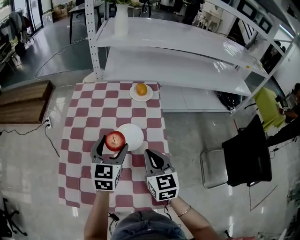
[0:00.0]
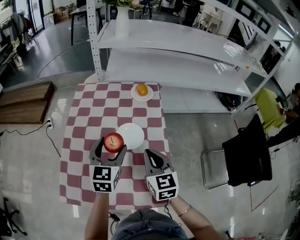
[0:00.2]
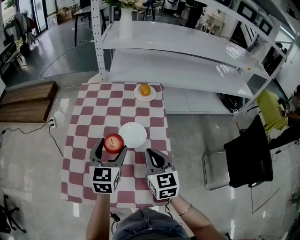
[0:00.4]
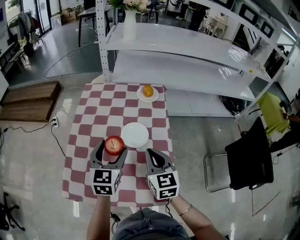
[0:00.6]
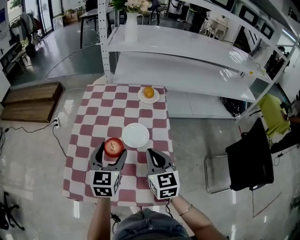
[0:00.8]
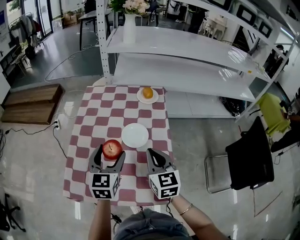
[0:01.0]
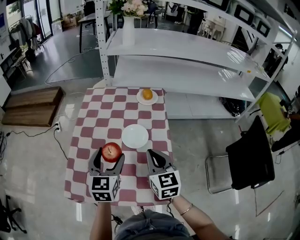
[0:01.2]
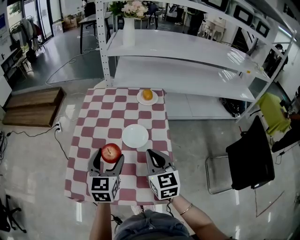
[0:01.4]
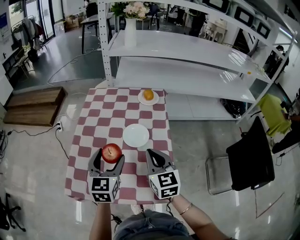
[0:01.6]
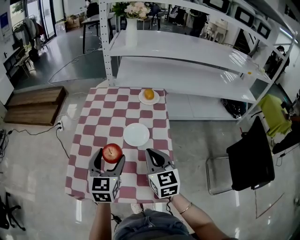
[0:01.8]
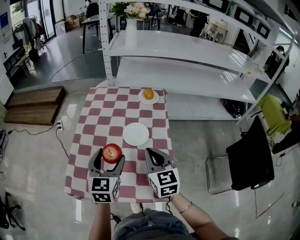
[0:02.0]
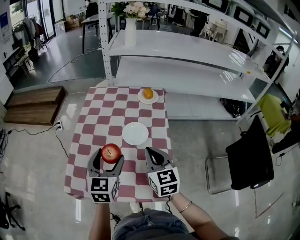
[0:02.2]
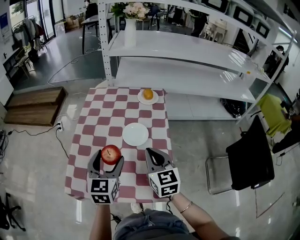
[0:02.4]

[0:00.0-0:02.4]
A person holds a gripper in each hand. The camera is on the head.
0:00.0 to 0:01.2: The left gripper heads backward, covering about 10 cm.
0:01.2 to 0:02.4: The grippers move only a little.

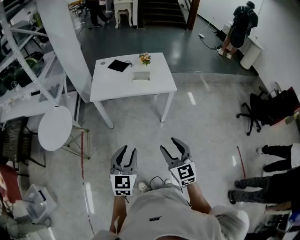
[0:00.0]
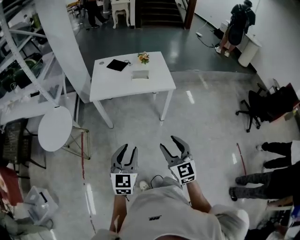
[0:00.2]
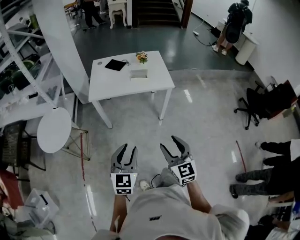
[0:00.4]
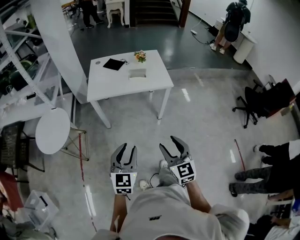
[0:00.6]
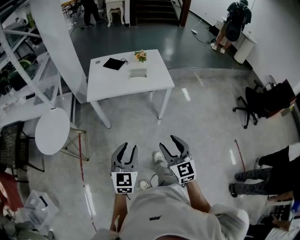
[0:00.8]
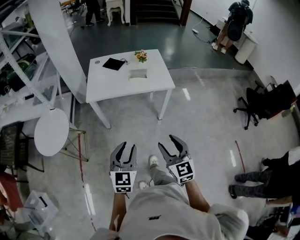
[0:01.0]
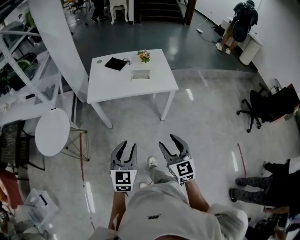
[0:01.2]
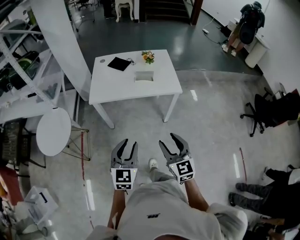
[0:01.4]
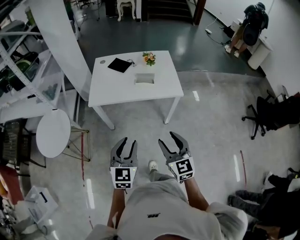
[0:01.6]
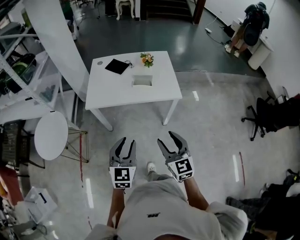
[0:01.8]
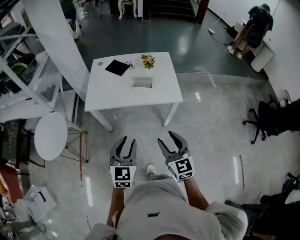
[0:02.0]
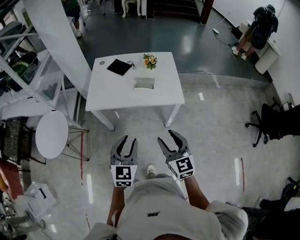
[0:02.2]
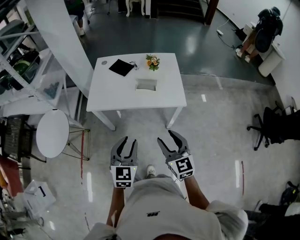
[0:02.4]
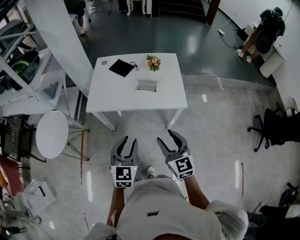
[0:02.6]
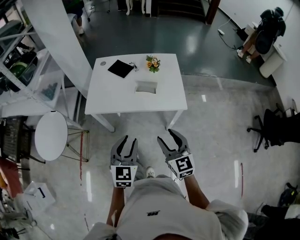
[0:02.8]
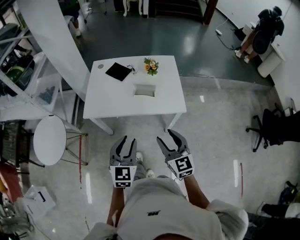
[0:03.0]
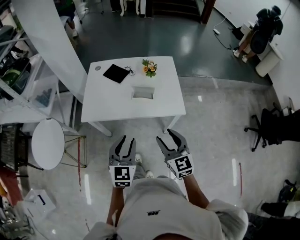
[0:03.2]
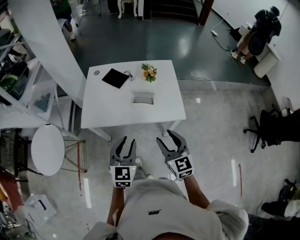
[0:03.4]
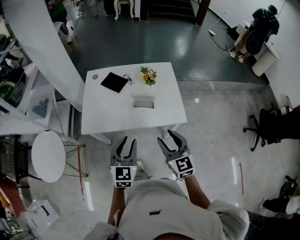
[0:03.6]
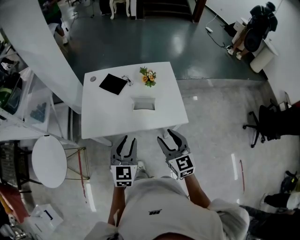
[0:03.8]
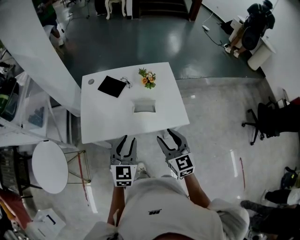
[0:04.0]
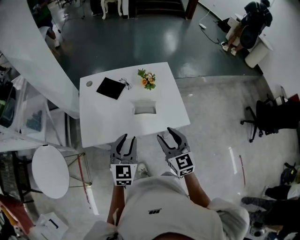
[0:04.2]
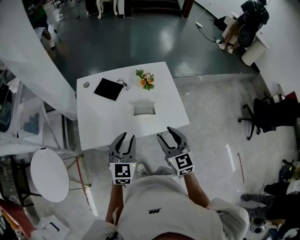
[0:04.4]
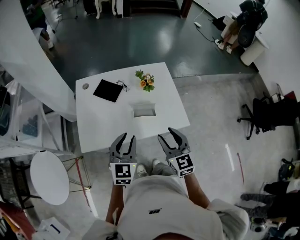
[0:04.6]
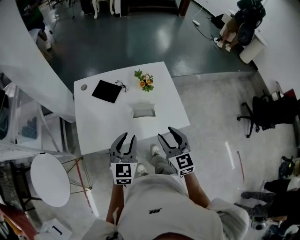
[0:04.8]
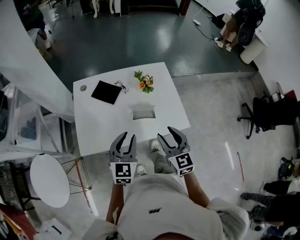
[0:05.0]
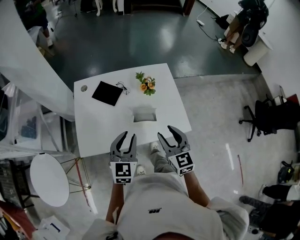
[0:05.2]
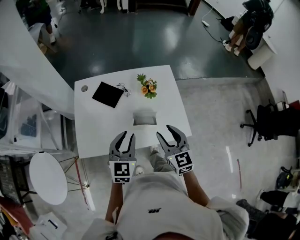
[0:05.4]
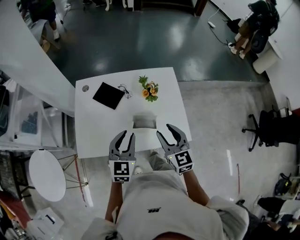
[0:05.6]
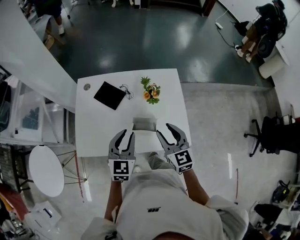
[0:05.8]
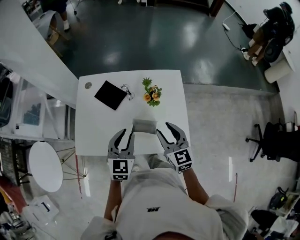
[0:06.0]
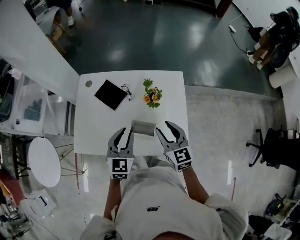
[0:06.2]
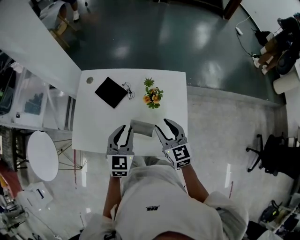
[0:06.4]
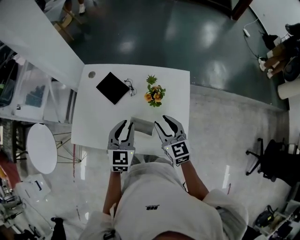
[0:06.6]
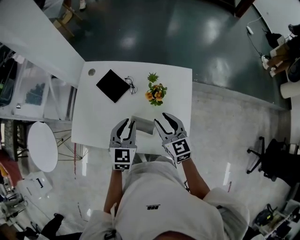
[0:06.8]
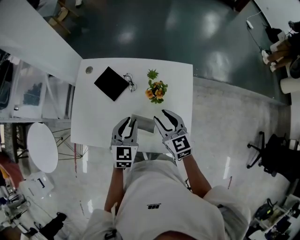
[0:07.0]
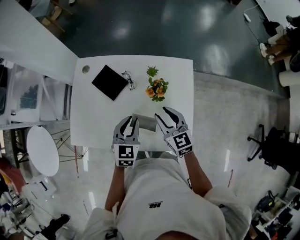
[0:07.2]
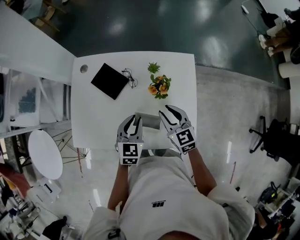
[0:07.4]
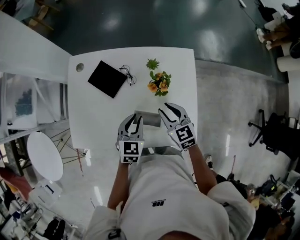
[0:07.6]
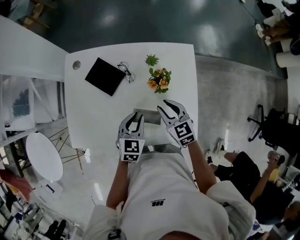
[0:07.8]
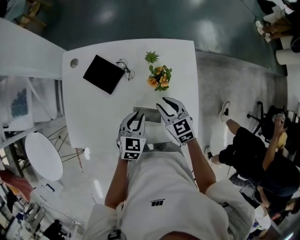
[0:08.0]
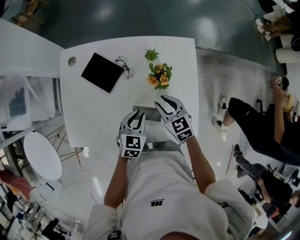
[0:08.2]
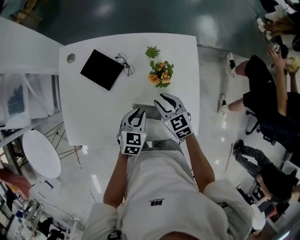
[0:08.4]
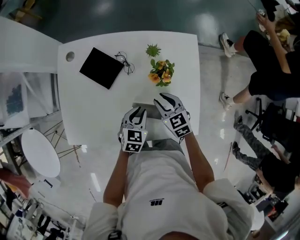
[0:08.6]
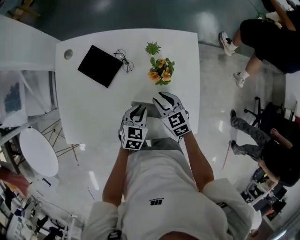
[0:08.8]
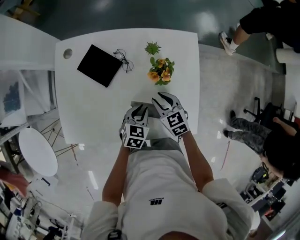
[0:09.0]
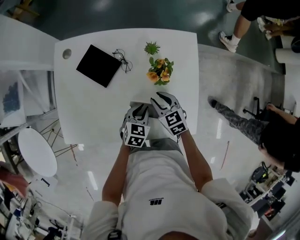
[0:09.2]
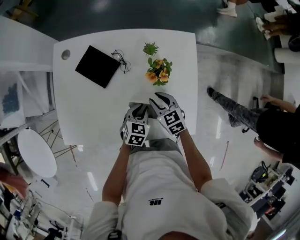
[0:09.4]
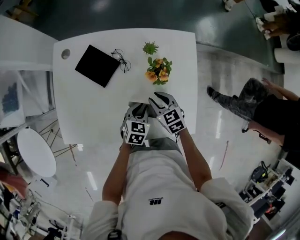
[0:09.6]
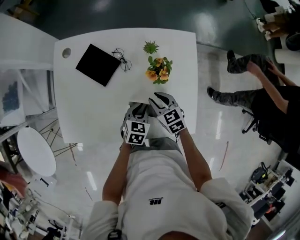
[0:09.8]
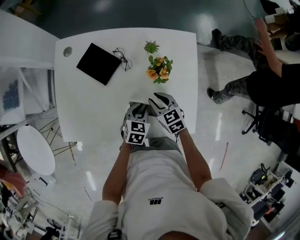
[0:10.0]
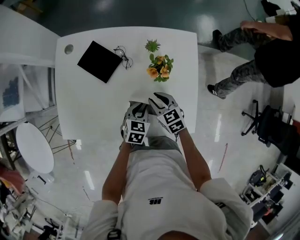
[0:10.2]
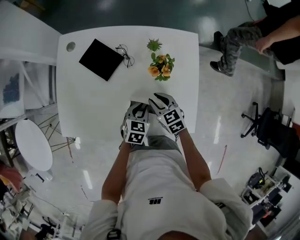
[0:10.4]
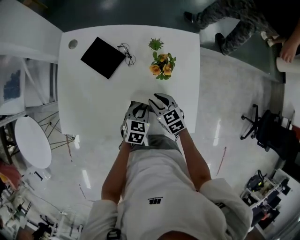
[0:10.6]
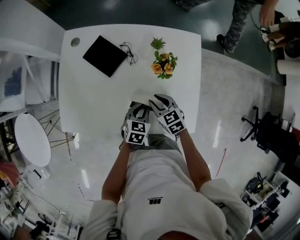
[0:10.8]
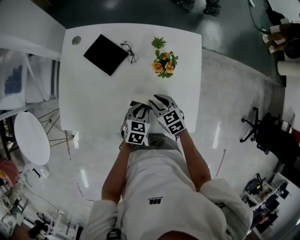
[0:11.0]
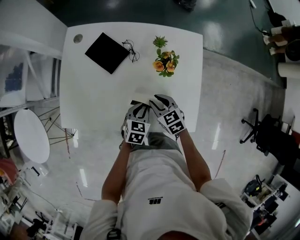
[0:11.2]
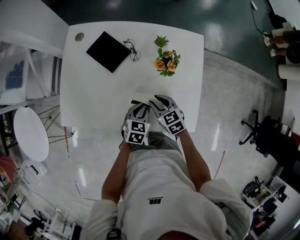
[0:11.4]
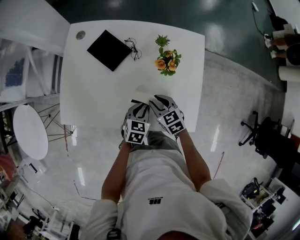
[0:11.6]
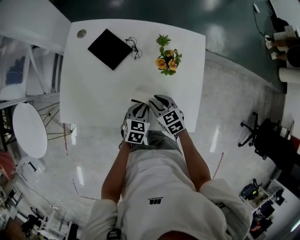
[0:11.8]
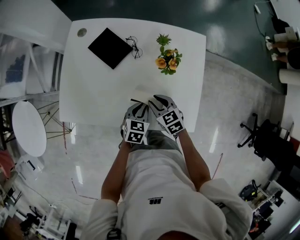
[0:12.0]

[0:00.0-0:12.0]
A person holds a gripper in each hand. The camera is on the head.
0:00.0 to 0:01.6: Both grippers move forward, about 15 cm.
0:01.6 to 0:03.0: Both grippers move forward, about 15 cm.
0:03.0 to 0:04.4: The grippers both shift forward by approximately 20 cm.
0:04.4 to 0:06.0: The grippers both shift forward by about 20 cm.
0:06.0 to 0:07.6: Both grippers travel together downward and forward, about 15 cm.
0:07.6 to 0:09.0: The two grippers go some 10 cm downward.
0:09.0 to 0:10.4: The grippers make only small movements.
0:10.4 to 0:12.0: The right gripper shifts about 5 cm backward.

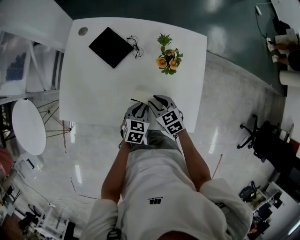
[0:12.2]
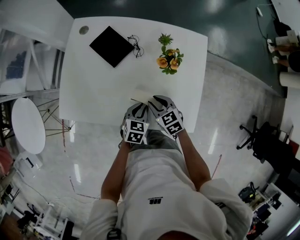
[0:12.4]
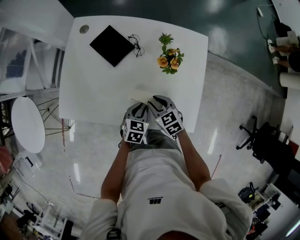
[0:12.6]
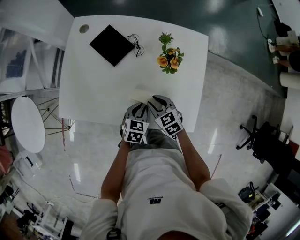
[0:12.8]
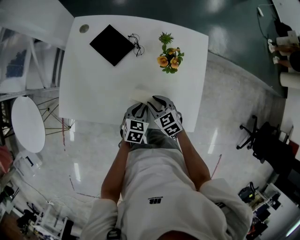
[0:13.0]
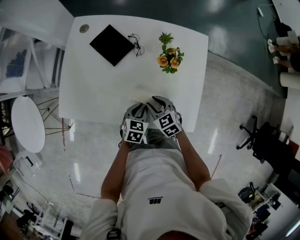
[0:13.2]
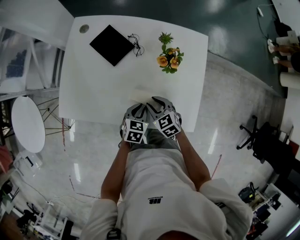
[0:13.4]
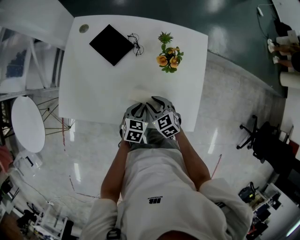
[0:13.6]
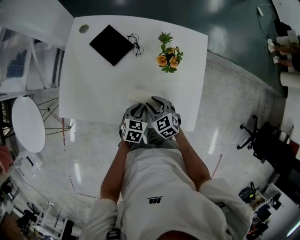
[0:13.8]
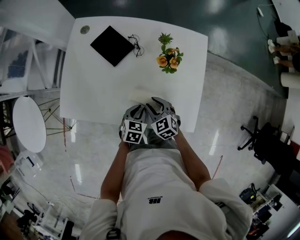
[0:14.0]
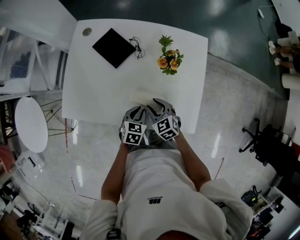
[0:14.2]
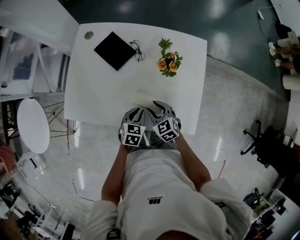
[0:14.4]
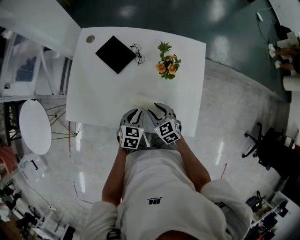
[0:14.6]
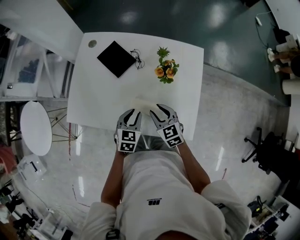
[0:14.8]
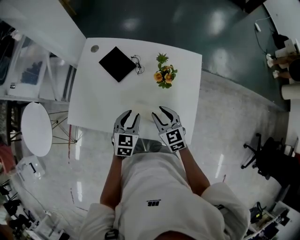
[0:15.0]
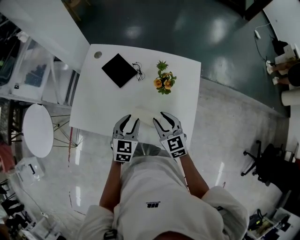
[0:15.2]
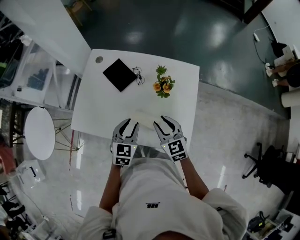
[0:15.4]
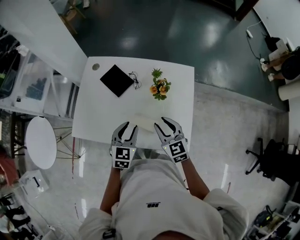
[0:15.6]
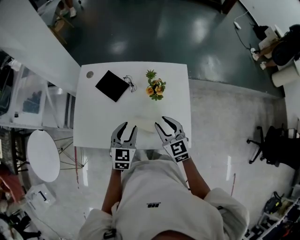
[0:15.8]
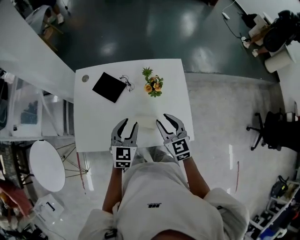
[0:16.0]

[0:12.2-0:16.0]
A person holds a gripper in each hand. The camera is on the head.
0:12.2 to 0:13.4: There are only small adjustments of the grippers.
0:13.4 to 0:14.8: Both grippers travel together upward, roughly 10 cm.
0:14.8 to 0:16.0: The grippers both shift upward by approximately 15 cm. The right gripper rotates about 20 degrees. Meanwhile the left gripper turns by some 20 degrees.

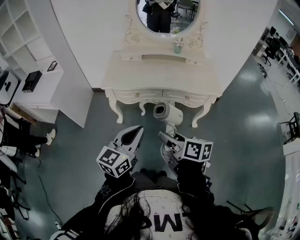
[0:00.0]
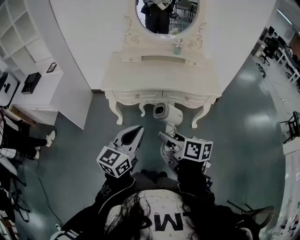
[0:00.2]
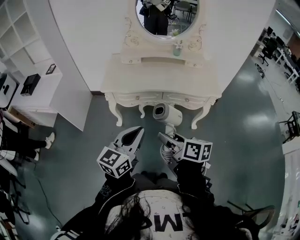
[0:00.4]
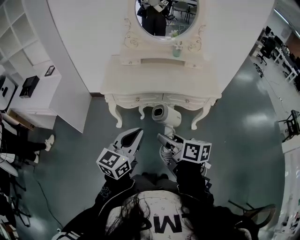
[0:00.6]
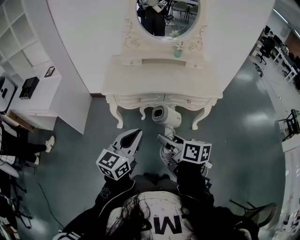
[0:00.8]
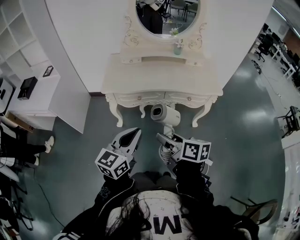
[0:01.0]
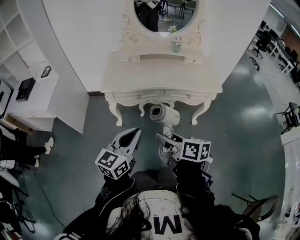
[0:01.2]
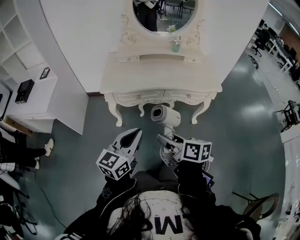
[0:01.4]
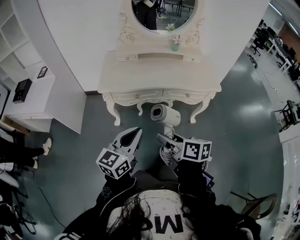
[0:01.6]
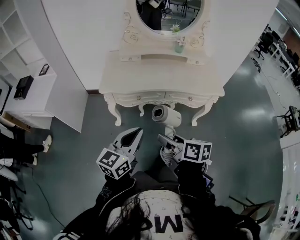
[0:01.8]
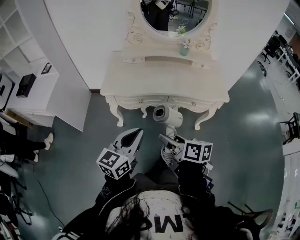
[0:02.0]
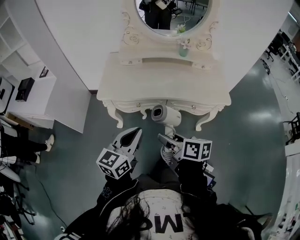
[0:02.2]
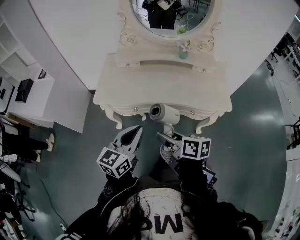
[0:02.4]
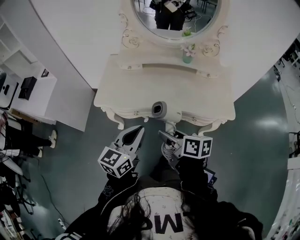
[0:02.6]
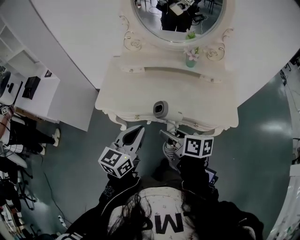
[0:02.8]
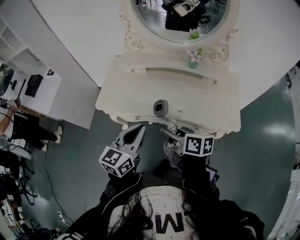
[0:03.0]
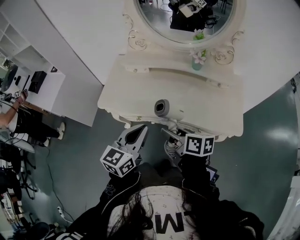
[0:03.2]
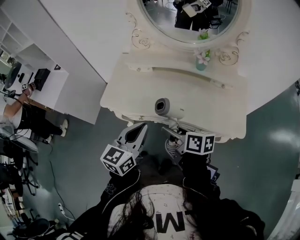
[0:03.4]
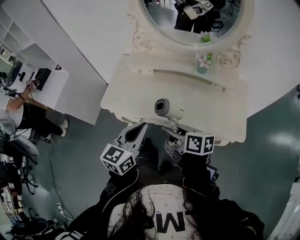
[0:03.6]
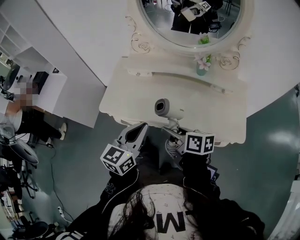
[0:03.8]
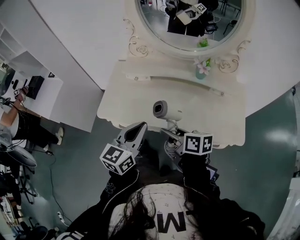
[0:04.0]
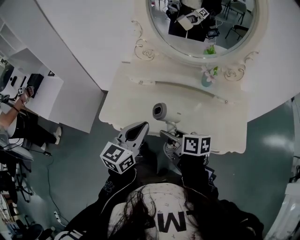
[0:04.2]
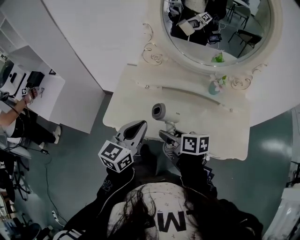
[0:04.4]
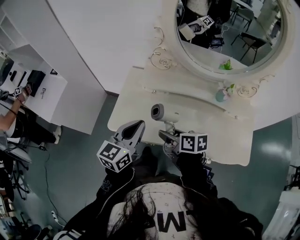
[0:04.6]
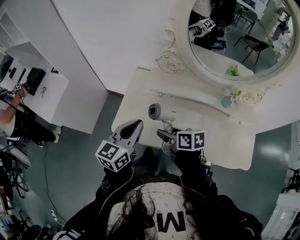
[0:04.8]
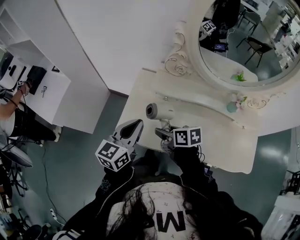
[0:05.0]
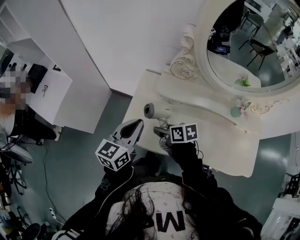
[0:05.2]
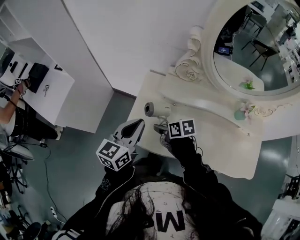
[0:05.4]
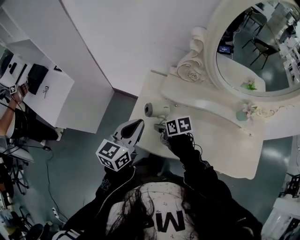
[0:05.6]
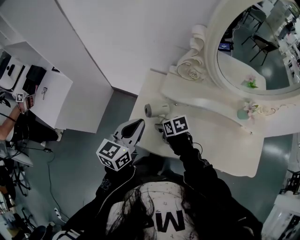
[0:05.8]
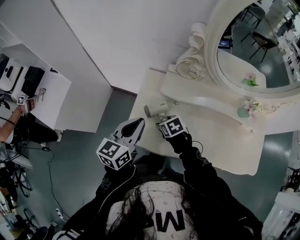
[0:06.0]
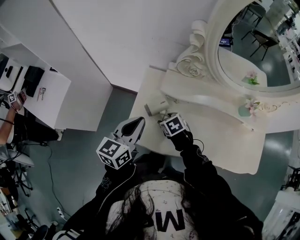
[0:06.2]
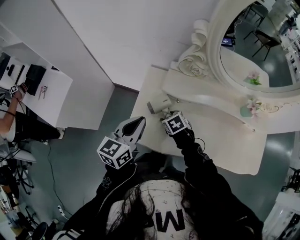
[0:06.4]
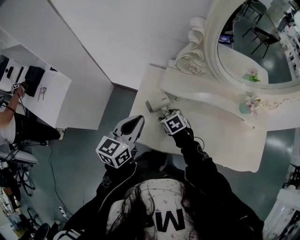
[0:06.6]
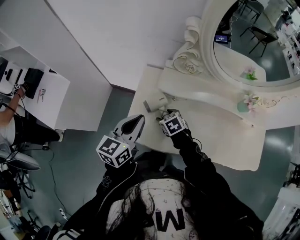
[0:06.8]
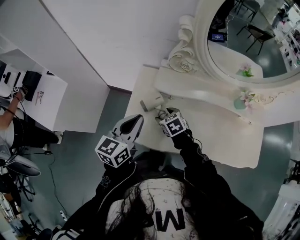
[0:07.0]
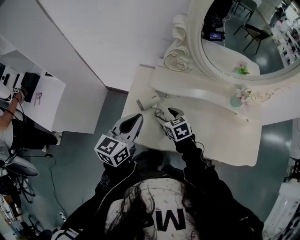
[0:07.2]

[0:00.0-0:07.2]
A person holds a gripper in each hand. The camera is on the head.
0:00.0 to 0:01.4: Both grippers move to the left, about 5 cm.
0:01.4 to 0:02.8: The two grippers go approximately 25 cm forward and to the right.
0:02.8 to 0:04.4: The grippers both shift forward by some 15 cm.
0:04.4 to 0:05.8: The right gripper shifts some 25 cm forward, downward and to the left, and swivels roughly 30 degrees, while the left gripper travels forward and to the left by about 20 cm.
0:05.8 to 0:07.2: The right gripper changes place by about 5 cm, and swivels approximately 20 degrees.
